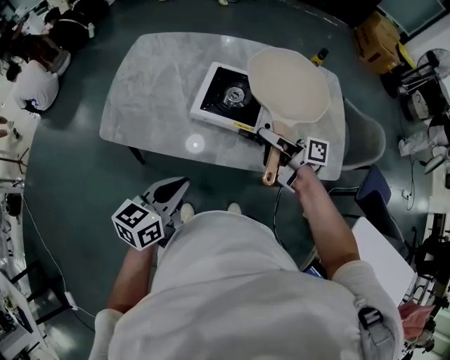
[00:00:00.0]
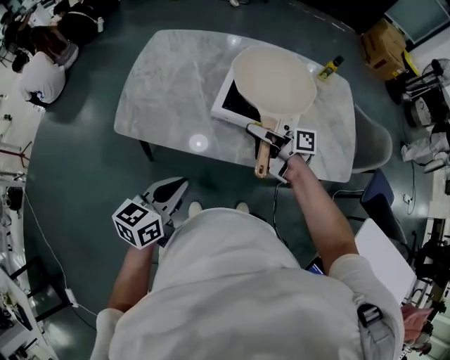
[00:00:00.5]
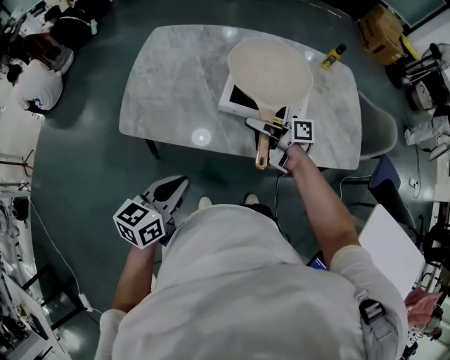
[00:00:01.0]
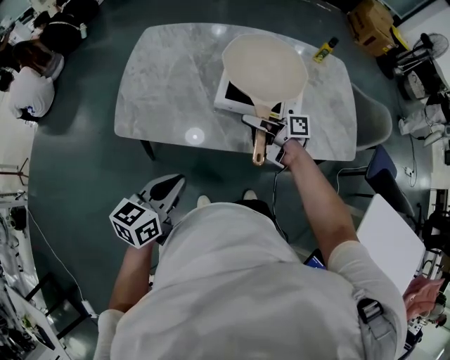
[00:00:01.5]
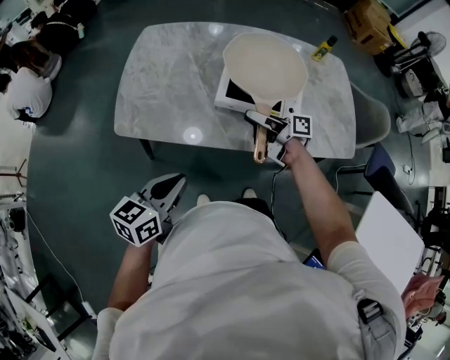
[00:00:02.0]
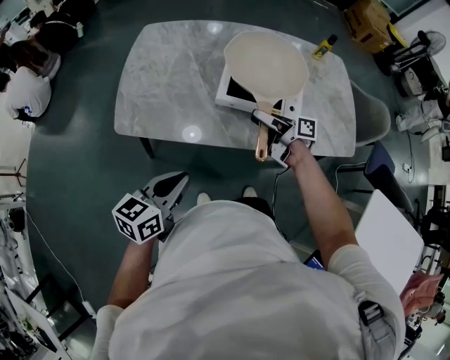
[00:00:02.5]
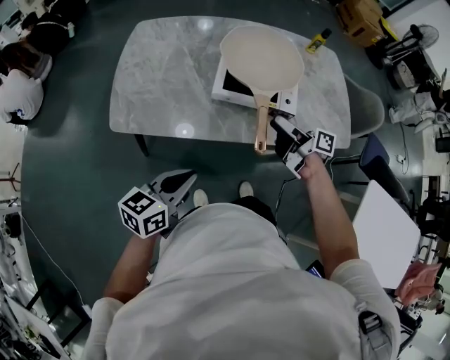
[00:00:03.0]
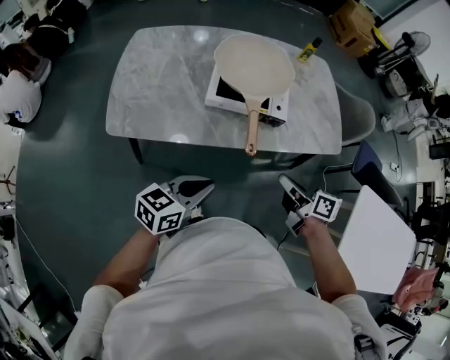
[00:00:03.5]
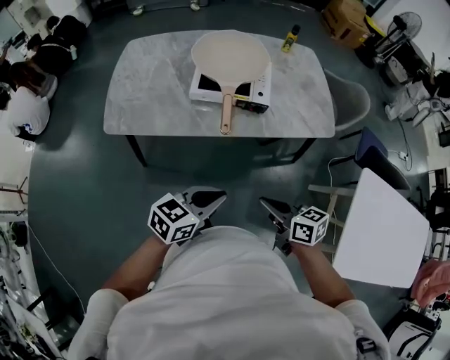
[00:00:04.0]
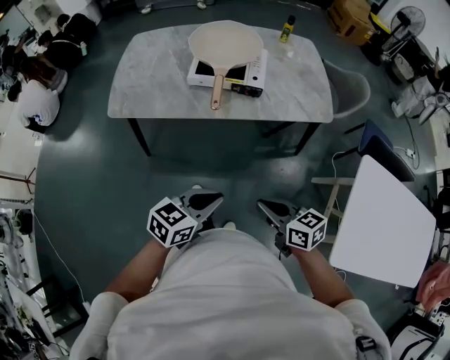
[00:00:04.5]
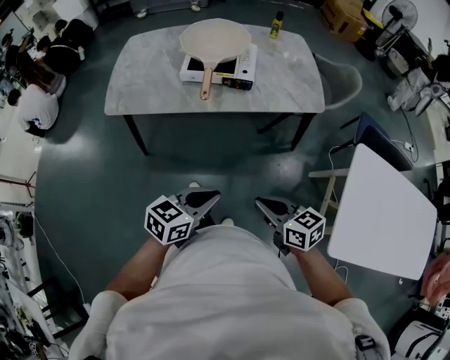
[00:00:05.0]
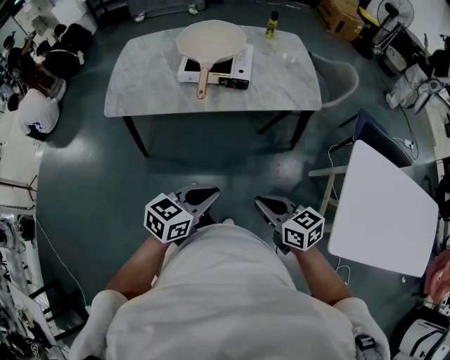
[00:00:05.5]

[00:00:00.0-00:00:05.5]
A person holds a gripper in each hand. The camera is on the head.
00:00:00.0 to 00:00:02.0: The left gripper heads to the left, covering some 15 cm. Meanwhile the right gripper is displaced to the left and downward by about 15 cm, and opens.
00:00:02.0 to 00:00:03.5: The right gripper goes roughly 25 cm backward and to the right, turns by about 30 degrees, and closes up. Meanwhile the left gripper goes approximately 10 cm to the right, and changes its angle by about 20 degrees.
00:00:03.5 to 00:00:05.5: The left gripper moves backward and to the right, roughly 25 cm, while the right gripper moves backward, roughly 25 cm, and swivels some 30 degrees.

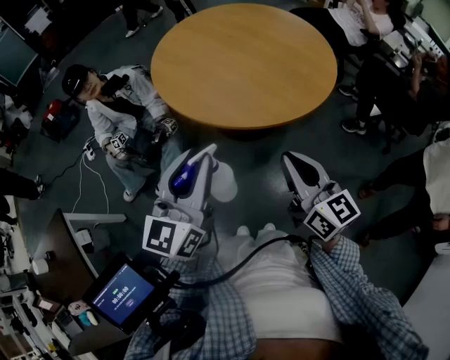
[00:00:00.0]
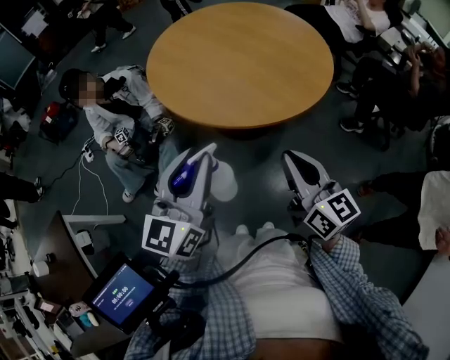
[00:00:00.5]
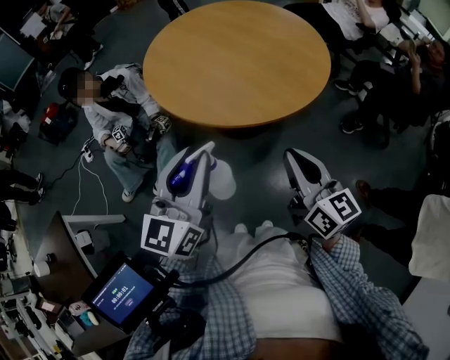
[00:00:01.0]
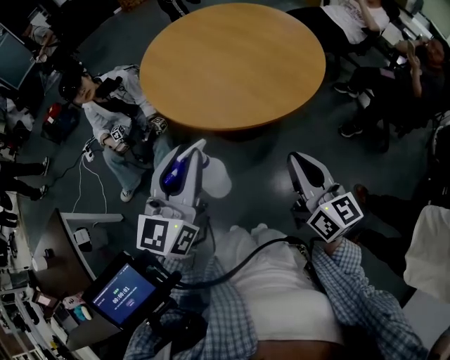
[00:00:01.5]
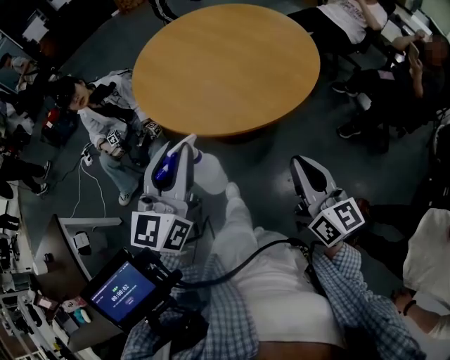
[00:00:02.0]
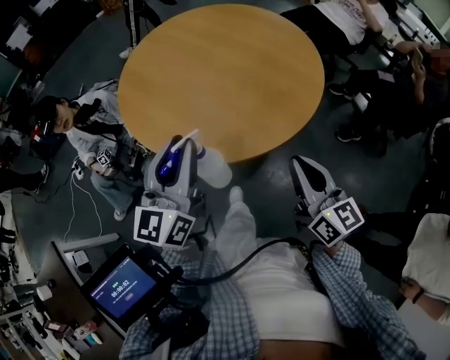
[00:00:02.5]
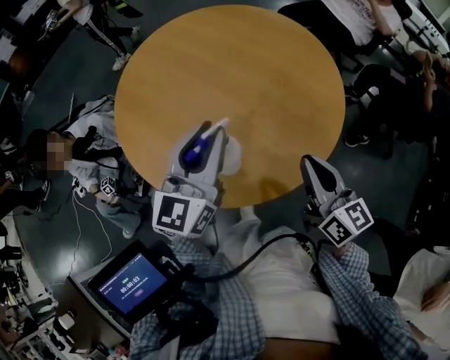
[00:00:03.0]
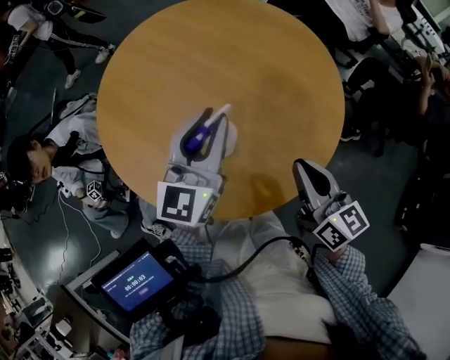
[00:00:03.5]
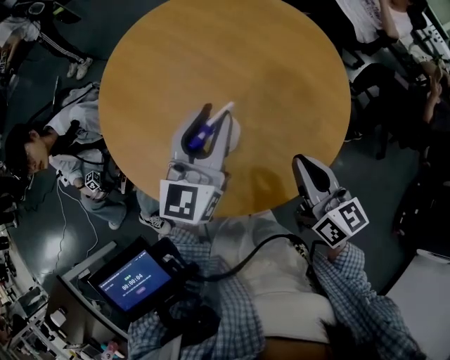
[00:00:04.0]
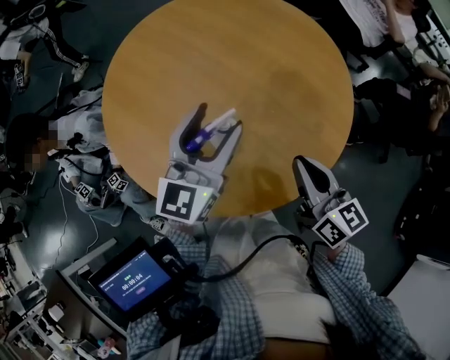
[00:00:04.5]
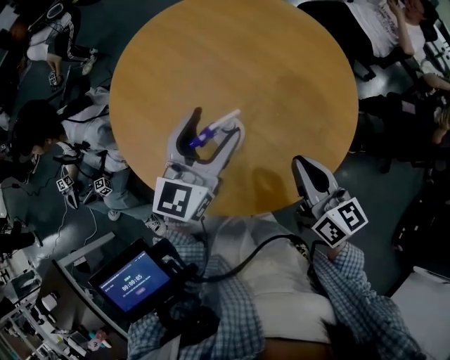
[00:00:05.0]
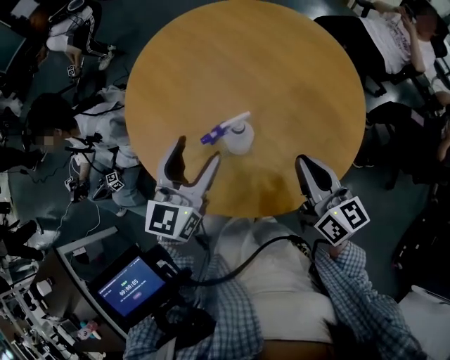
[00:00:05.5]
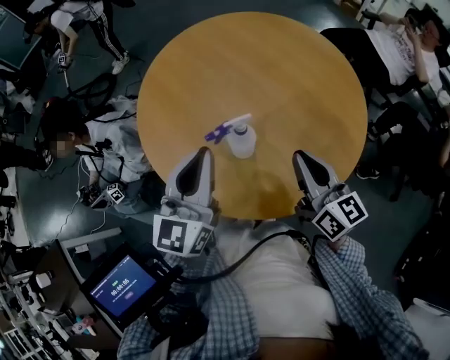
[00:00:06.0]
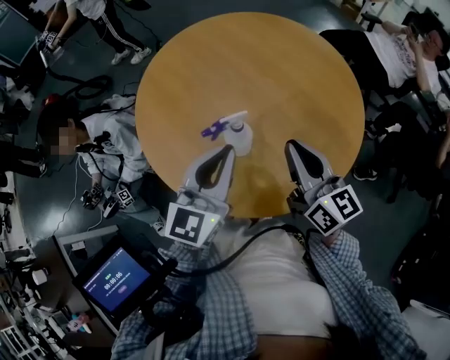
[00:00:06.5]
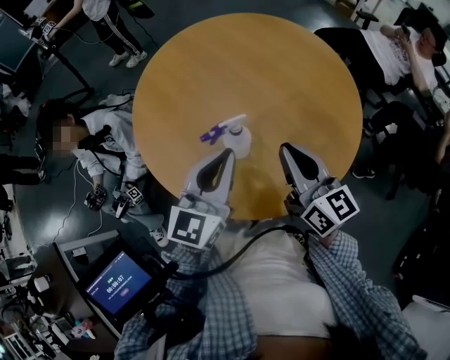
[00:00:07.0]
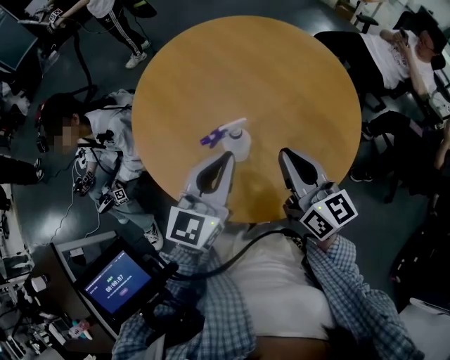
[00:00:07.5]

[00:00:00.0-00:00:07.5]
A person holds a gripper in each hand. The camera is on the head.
00:00:00.0 to 00:00:02.0: The left gripper heads to the right, covering approximately 5 cm; the right gripper heads to the right, covering approximately 10 cm.
00:00:02.0 to 00:00:04.0: Both grippers travel together forward, roughly 35 cm.
00:00:04.0 to 00:00:05.5: The left gripper travels to the left and backward by roughly 10 cm, and opens up.
00:00:05.5 to 00:00:07.5: The left gripper is displaced to the right by some 5 cm, and closes.

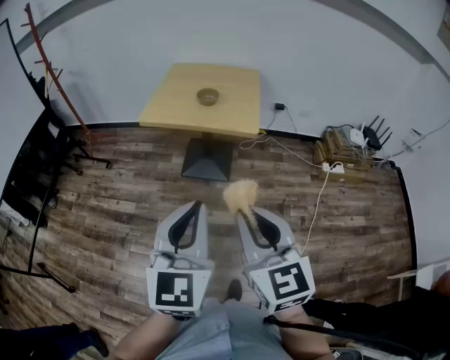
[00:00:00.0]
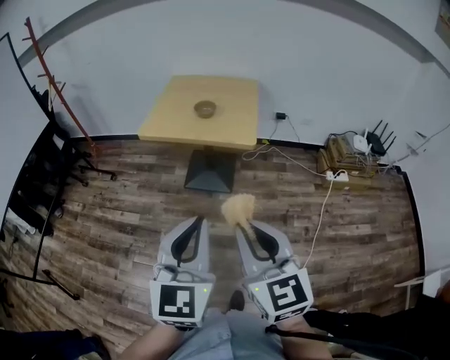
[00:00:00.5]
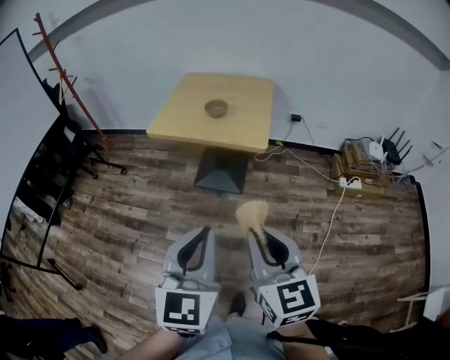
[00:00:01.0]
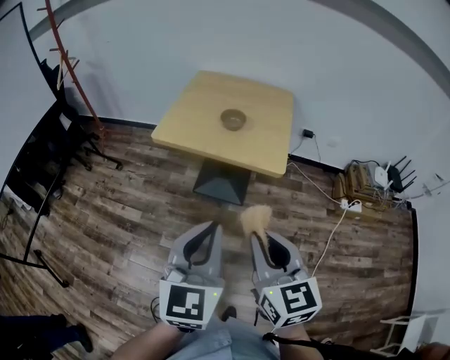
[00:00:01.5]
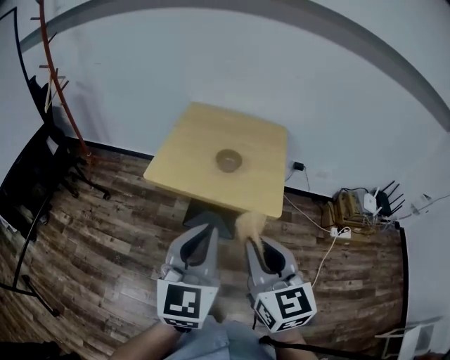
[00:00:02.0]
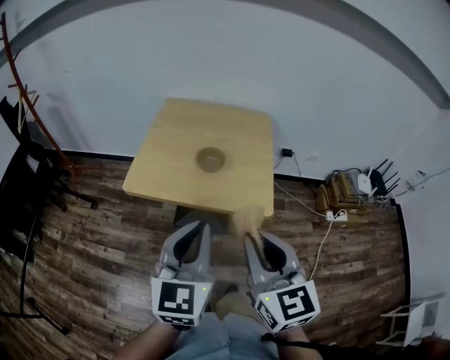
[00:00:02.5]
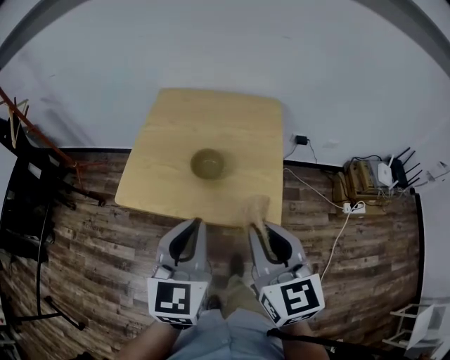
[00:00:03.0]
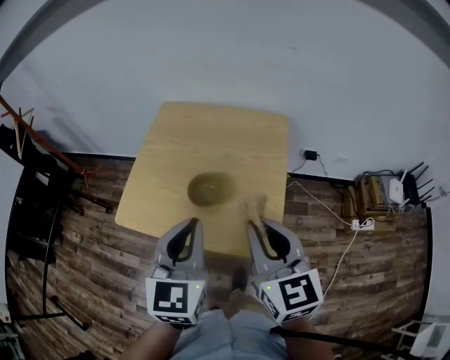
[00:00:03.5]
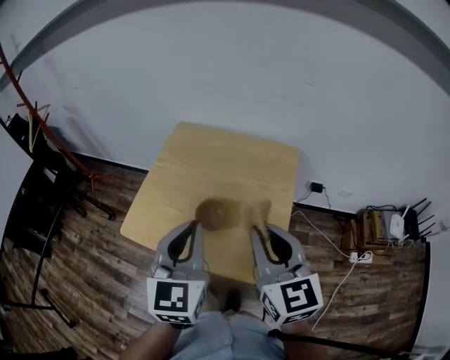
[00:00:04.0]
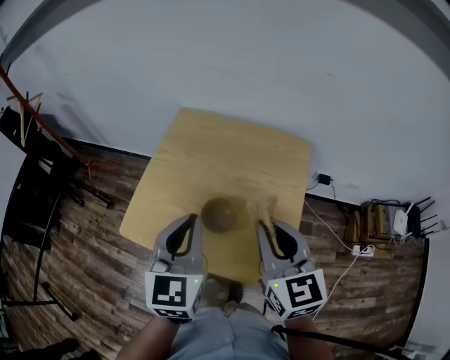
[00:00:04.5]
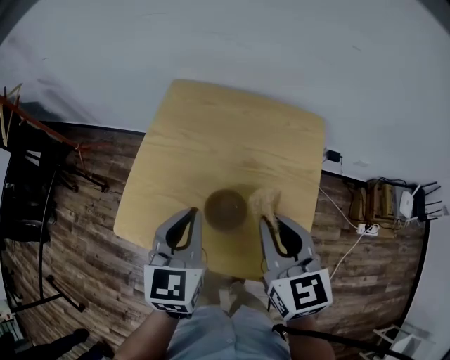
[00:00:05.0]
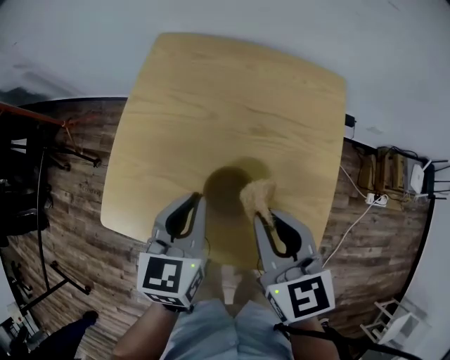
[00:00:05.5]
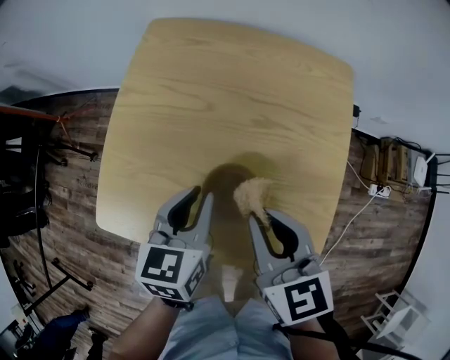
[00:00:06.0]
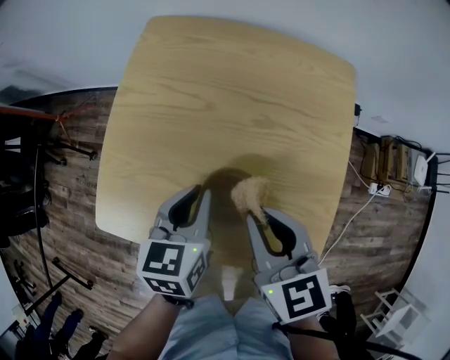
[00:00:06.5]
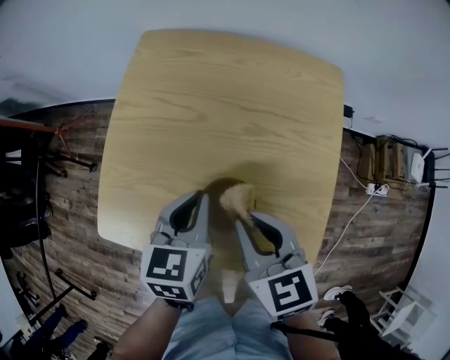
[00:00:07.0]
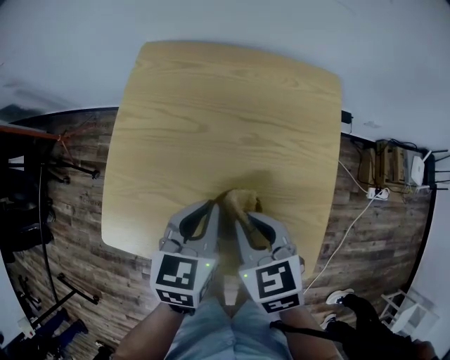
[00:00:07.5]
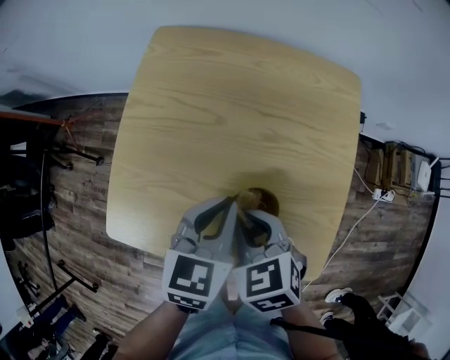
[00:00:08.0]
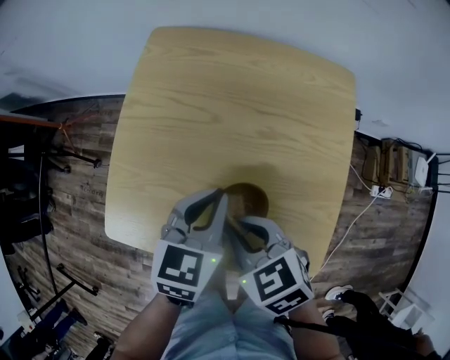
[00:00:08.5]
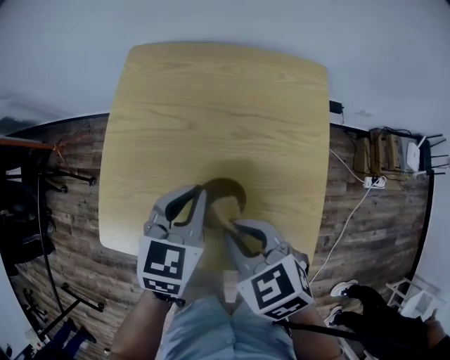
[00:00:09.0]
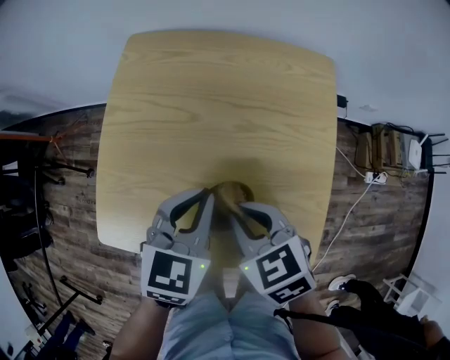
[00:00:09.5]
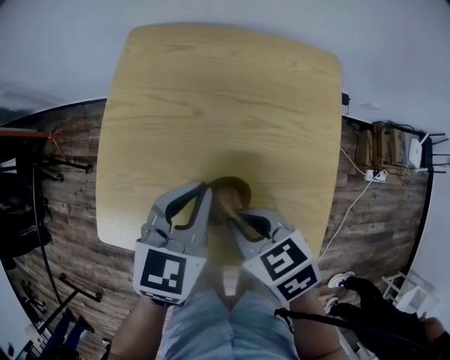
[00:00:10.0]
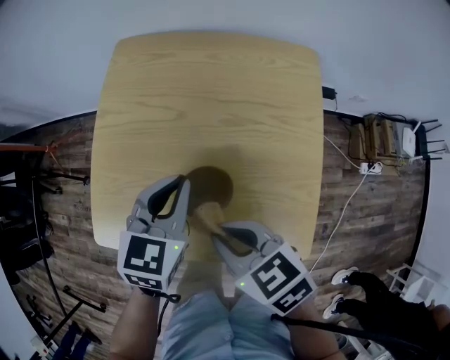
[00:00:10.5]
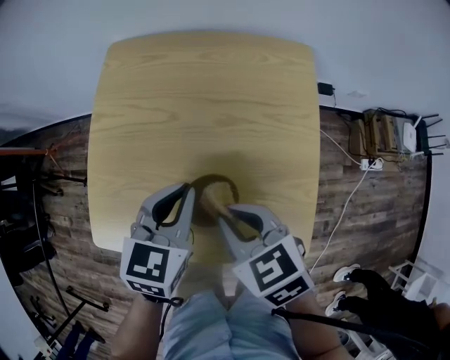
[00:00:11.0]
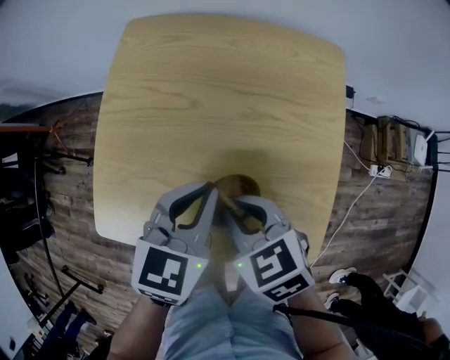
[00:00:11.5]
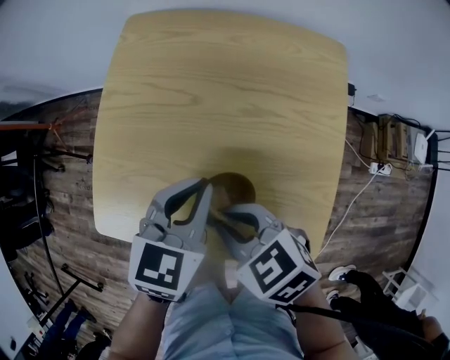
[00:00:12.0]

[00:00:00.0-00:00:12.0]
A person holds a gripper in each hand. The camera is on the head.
00:00:00.0 to 00:00:02.0: Both grippers move forward, approximately 25 cm.
00:00:02.0 to 00:00:04.0: Both grippers travel together forward, about 30 cm.
00:00:04.0 to 00:00:06.0: The left gripper travels downward and forward by approximately 25 cm, and rotates about 30 degrees, while the right gripper heads downward, forward and to the left, covering some 20 cm, and rotates about 20 degrees.
00:00:06.0 to 00:00:08.0: The right gripper moves downward and to the left, some 10 cm, and rotates roughly 30 degrees.
00:00:08.0 to 00:00:10.0: The grippers make only small movements.
00:00:10.0 to 00:00:12.0: There are only small adjustments of the grippers.

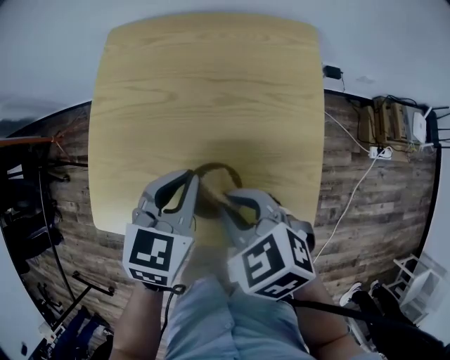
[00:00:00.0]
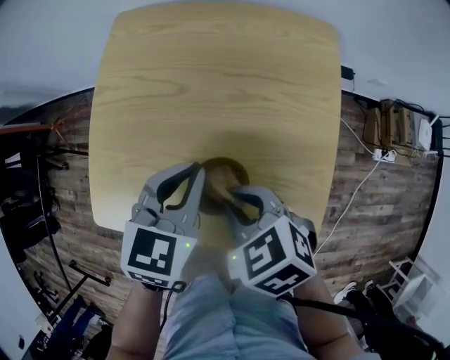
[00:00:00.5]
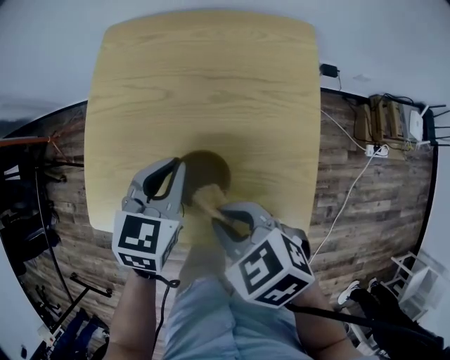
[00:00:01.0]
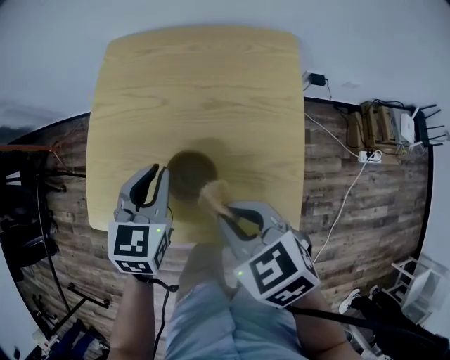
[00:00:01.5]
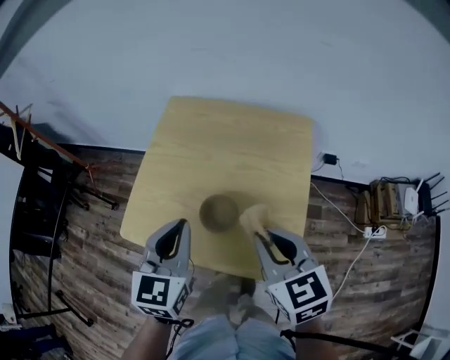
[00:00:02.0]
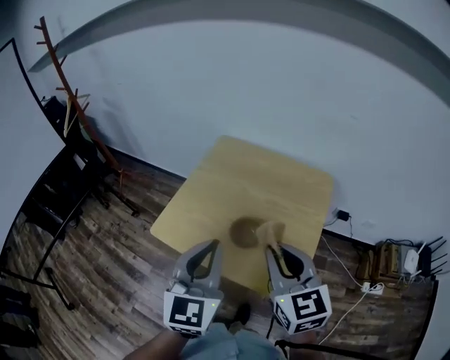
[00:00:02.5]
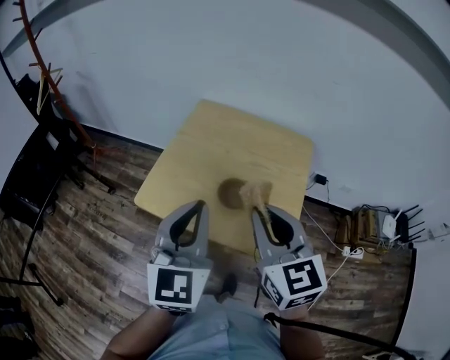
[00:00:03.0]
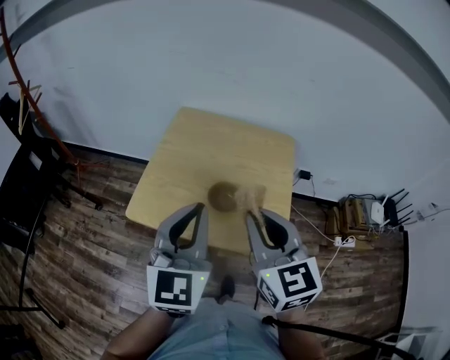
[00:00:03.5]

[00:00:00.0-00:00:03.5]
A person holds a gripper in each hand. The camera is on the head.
00:00:00.0 to 00:00:02.0: The left gripper shifts roughly 15 cm upward, backward and to the left, and swivels some 30 degrees. The right gripper travels upward and to the right by approximately 15 cm, and rotates some 30 degrees.
00:00:02.0 to 00:00:03.5: The right gripper moves upward, to the left and backward, approximately 15 cm; the left gripper is displaced upward and backward by about 15 cm.
